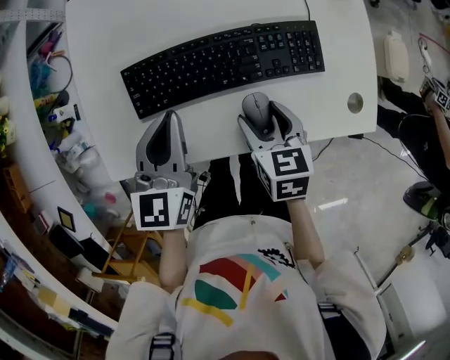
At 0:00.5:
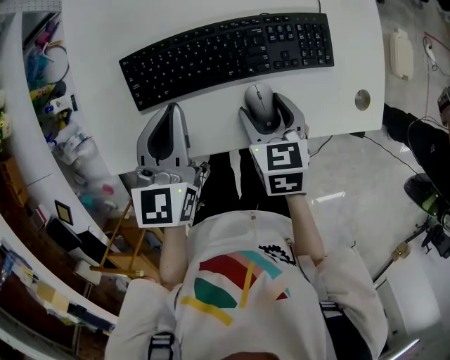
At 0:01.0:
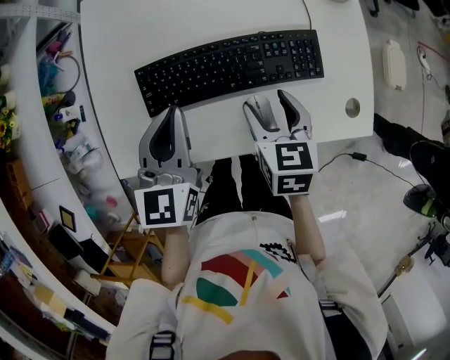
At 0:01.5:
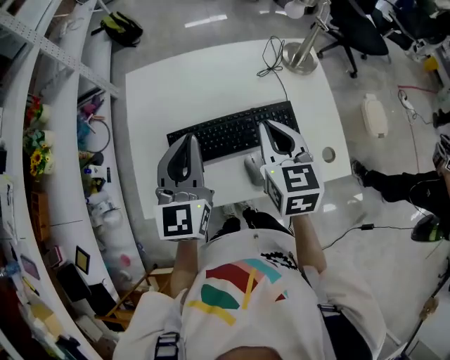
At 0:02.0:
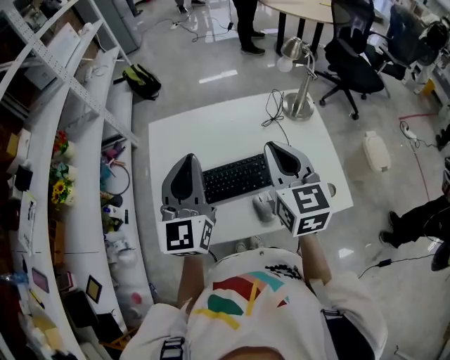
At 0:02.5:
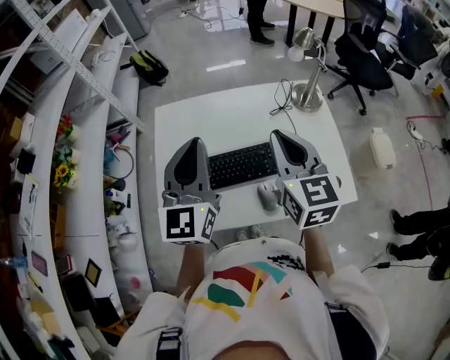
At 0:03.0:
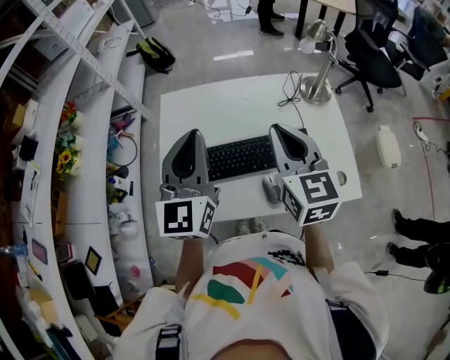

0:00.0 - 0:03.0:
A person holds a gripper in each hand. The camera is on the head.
0:00.0 - 0:01.5: The grippers both shift upward by some 20 cm. The left gripper changes its angle by some 20 degrees. Meanwhile the right gripper turns by some 30 degrees, and closes its fingers.
0:01.5 - 0:03.0: The two grippers go some 10 cm upward.

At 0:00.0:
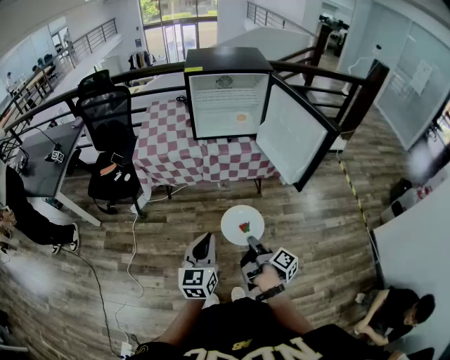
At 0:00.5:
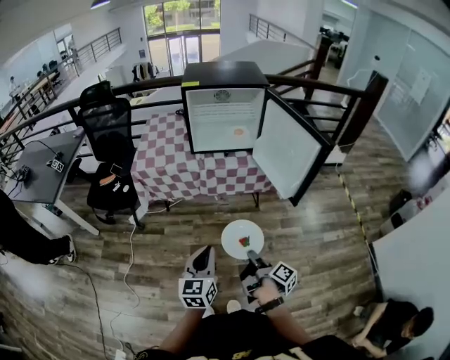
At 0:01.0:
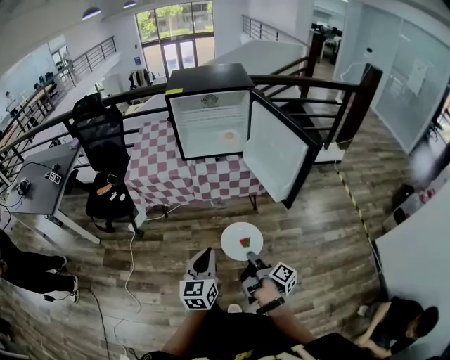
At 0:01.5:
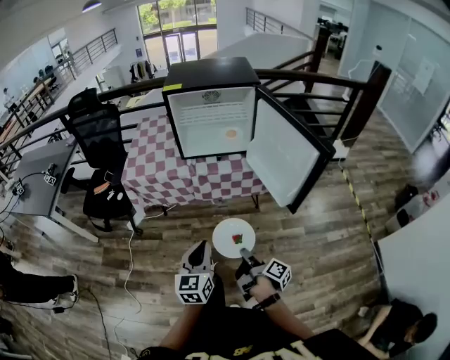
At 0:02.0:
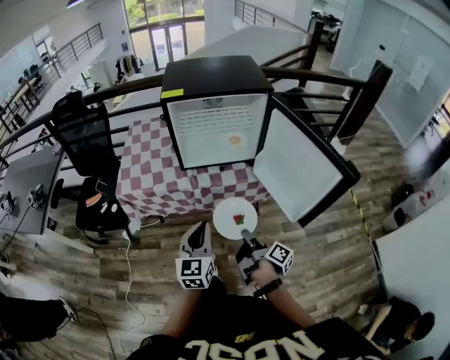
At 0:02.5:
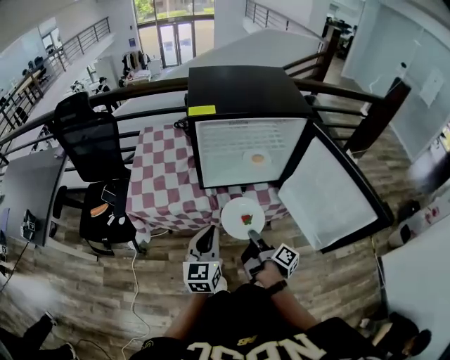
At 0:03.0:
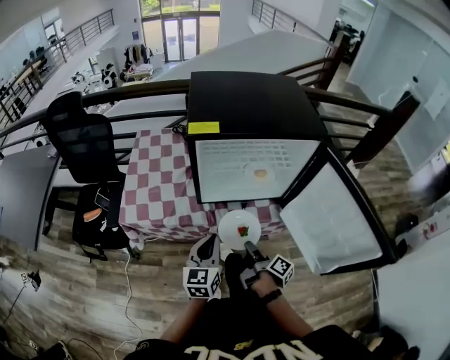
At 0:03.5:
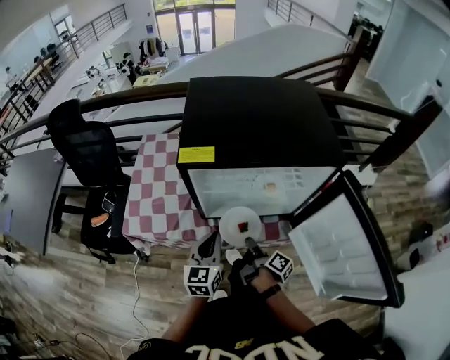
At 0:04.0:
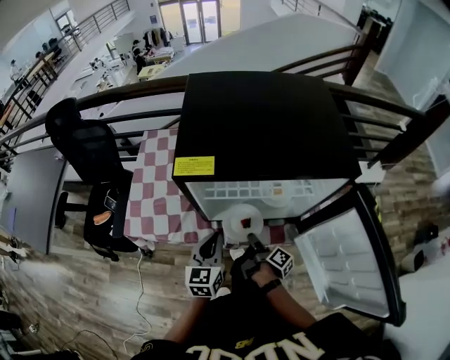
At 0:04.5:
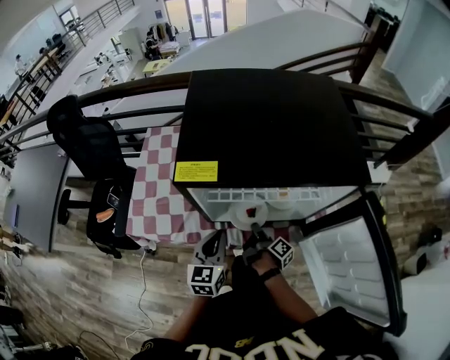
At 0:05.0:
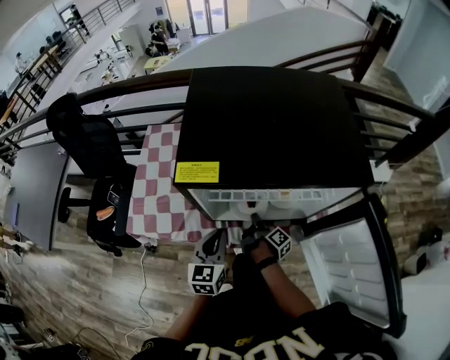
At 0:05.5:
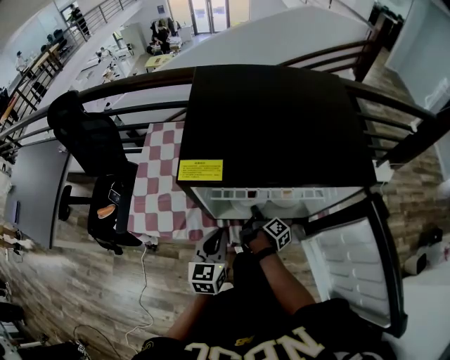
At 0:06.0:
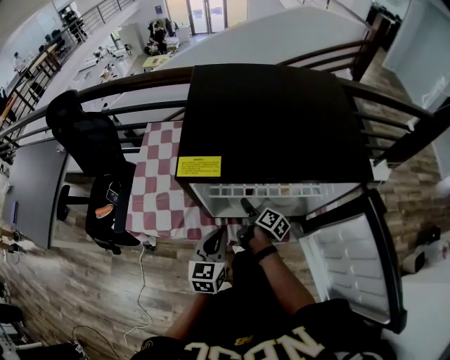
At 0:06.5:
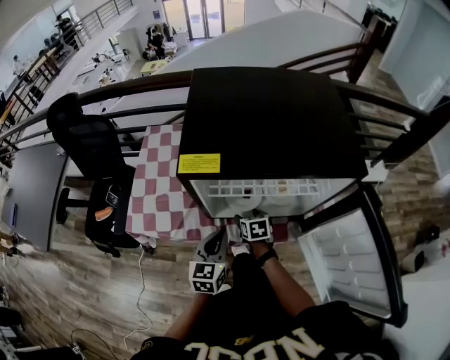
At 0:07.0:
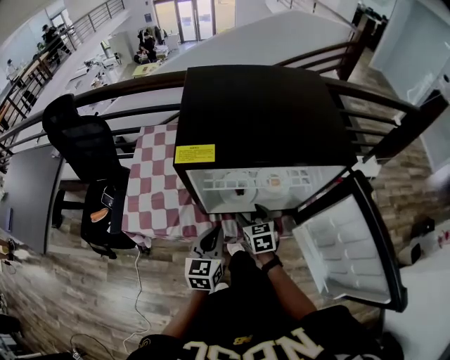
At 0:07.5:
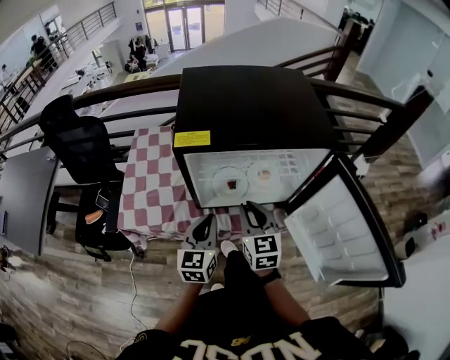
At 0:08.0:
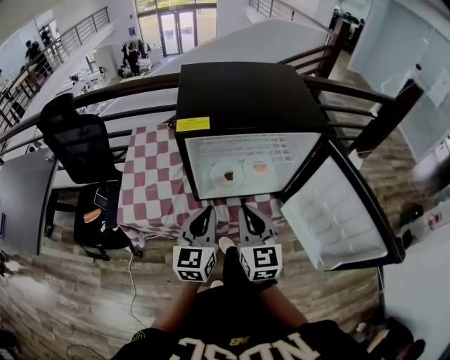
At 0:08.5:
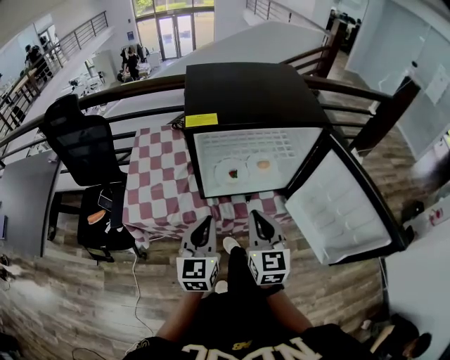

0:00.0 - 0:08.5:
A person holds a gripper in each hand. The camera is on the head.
0:00.0 - 0:02.0: The left gripper changes place by some 25 cm.
0:02.0 - 0:04.0: The left gripper shifts by about 30 cm.
0:06.5 - 0:08.5: The left gripper heads upward, covering roughly 10 cm.

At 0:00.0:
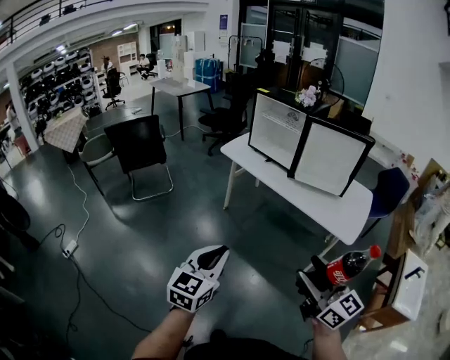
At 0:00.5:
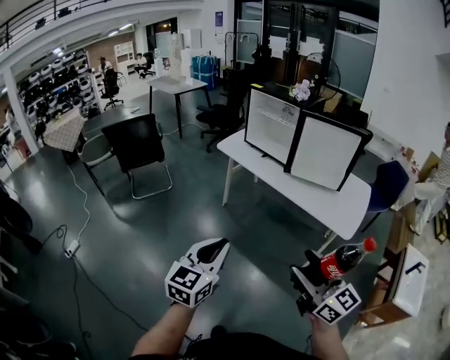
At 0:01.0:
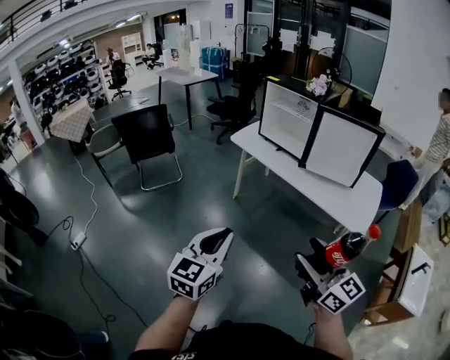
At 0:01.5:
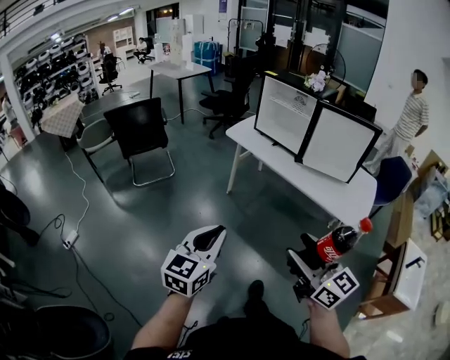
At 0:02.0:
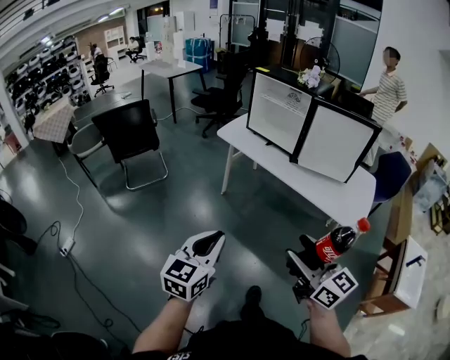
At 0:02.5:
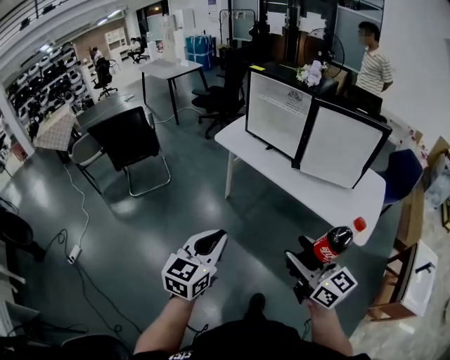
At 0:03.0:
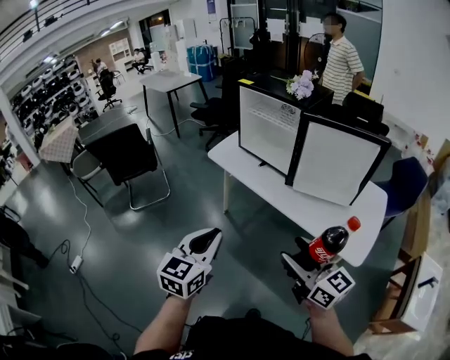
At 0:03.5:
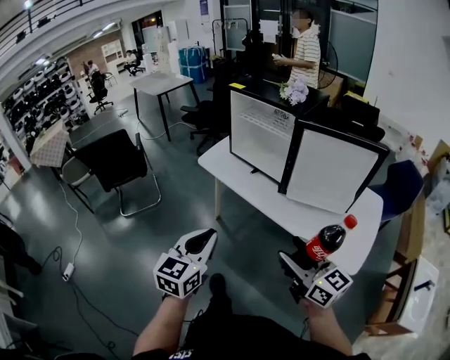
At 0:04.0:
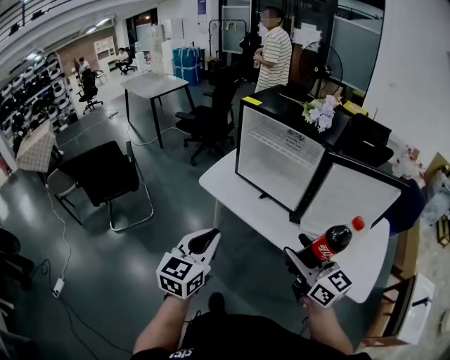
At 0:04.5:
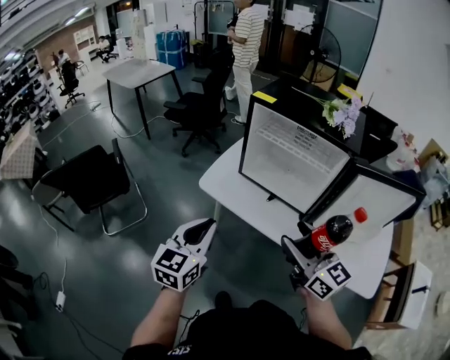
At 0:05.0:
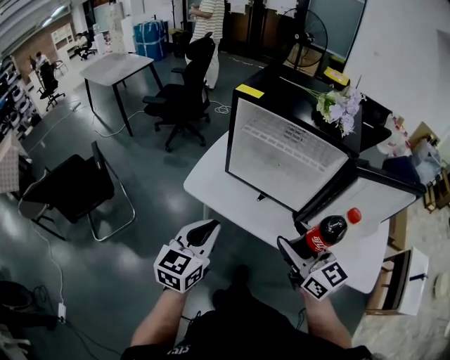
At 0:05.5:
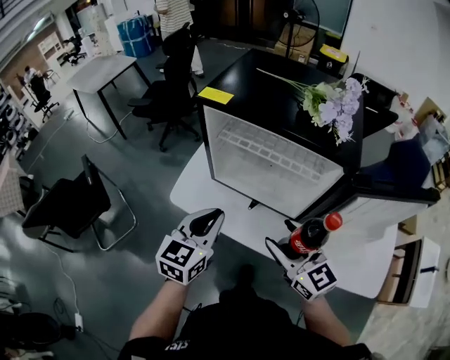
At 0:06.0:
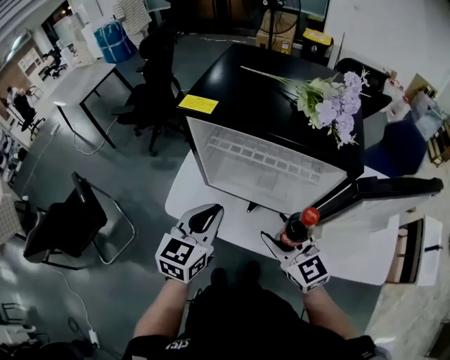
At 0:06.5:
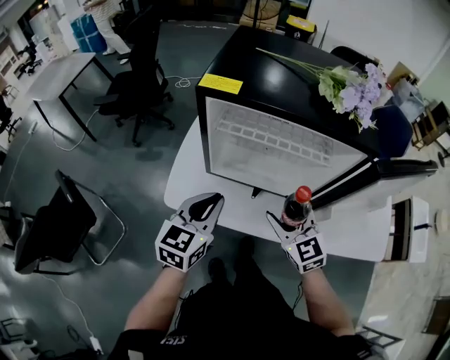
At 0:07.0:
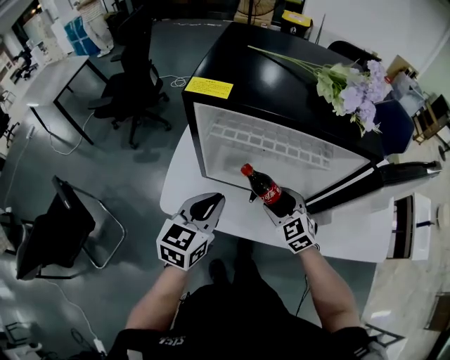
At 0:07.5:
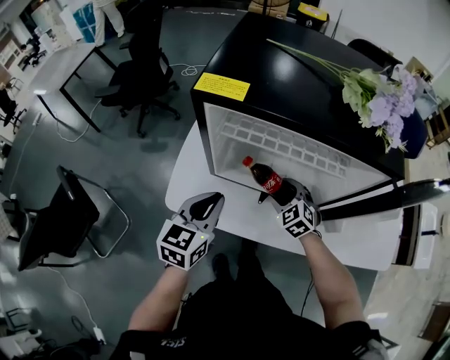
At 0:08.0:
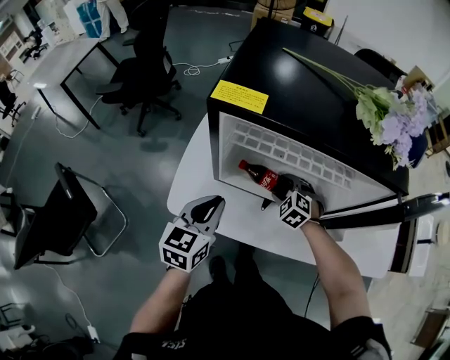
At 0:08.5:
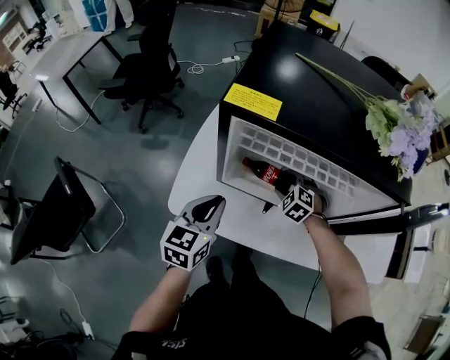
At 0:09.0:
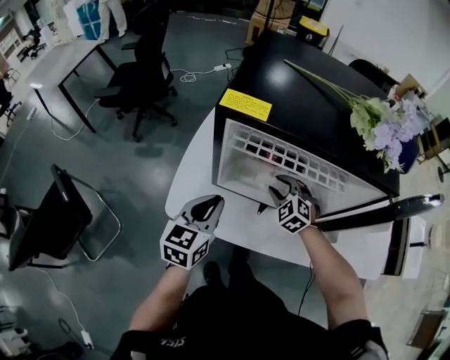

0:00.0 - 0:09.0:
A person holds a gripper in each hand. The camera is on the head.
0:00.0 - 0:02.0: The right gripper is displaced forward and to the left by approximately 10 cm; the left gripper travels forward by approximately 10 cm.
0:02.0 - 0:04.5: Both grippers are carried forward, some 60 cm.
0:04.5 - 0:07.0: The right gripper changes place by some 40 cm, and angles its fingers downward, by approximately 40 degrees. The left gripper moves roughly 30 cm, and turns by some 30 degrees.
0:07.0 - 0:09.0: The right gripper moves forward, some 10 cm, swivels some 20 degrees, and closes, while the left gripper goes approximately 5 cm to the left.

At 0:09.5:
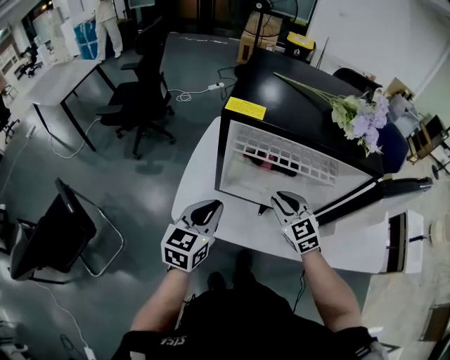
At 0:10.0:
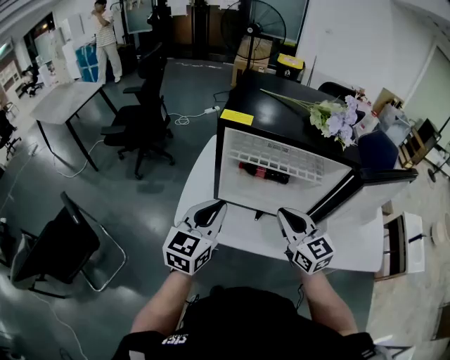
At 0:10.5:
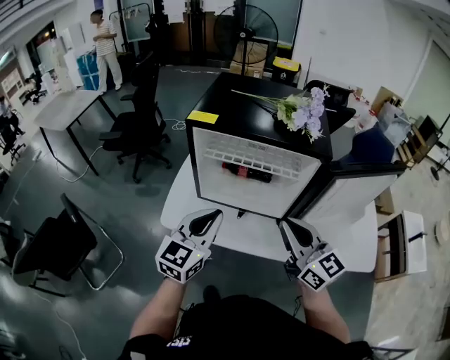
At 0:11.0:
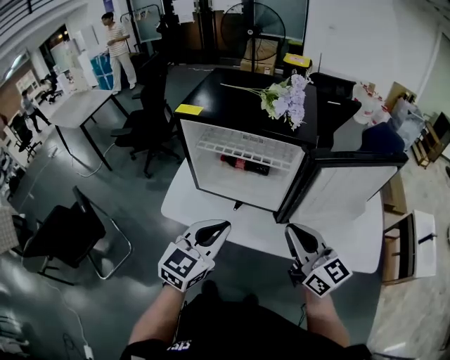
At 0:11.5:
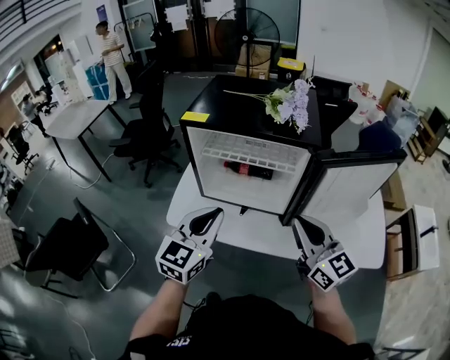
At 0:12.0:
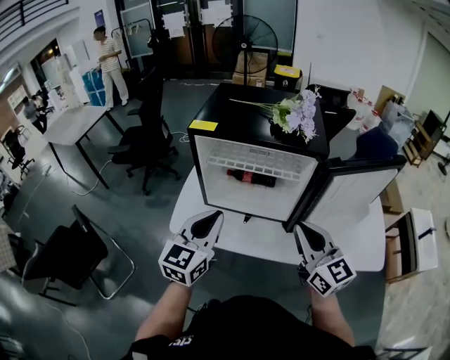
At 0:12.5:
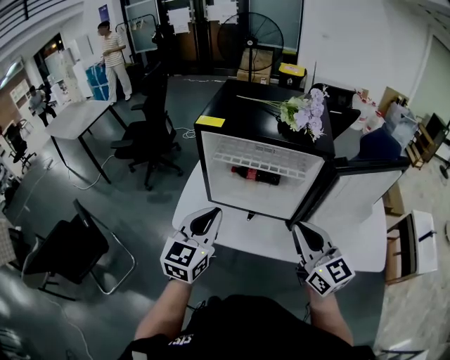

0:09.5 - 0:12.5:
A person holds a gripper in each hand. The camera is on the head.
0:09.5 - 0:11.0: The left gripper goes about 25 cm to the right, backward and upward. Meanwhile the right gripper is displaced backward, to the right and upward by about 30 cm, and angles its fingers upward, by approximately 30 degrees.
0:11.0 - 0:12.5: The right gripper travels to the left by roughly 5 cm. Meanwhile the left gripper moves to the left and forward, about 10 cm.

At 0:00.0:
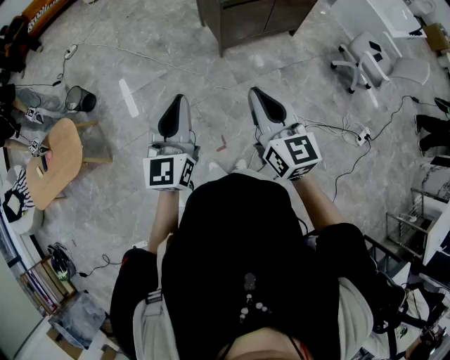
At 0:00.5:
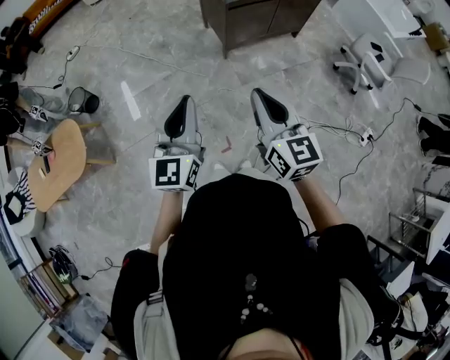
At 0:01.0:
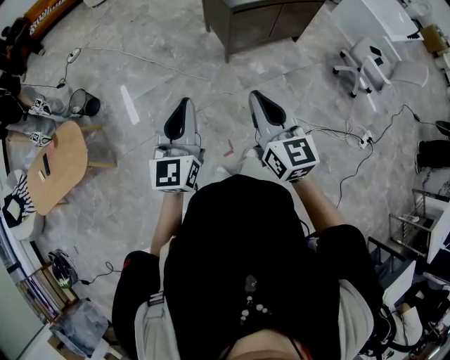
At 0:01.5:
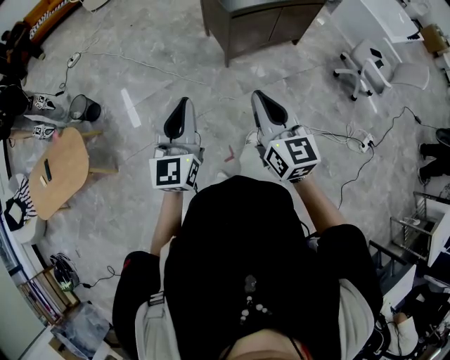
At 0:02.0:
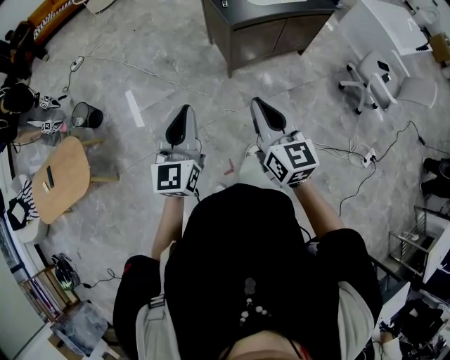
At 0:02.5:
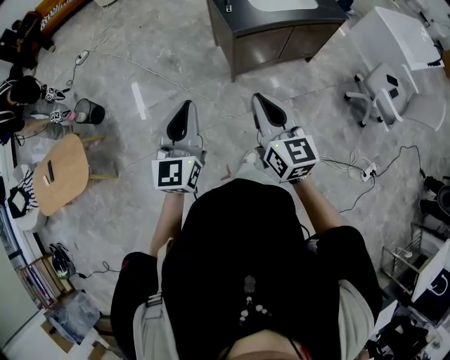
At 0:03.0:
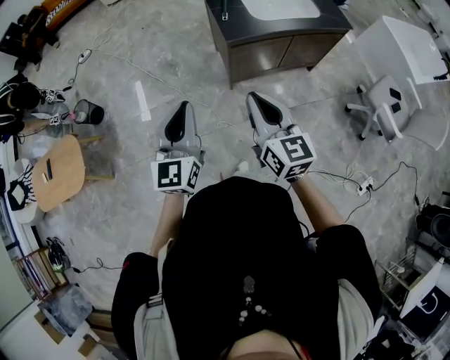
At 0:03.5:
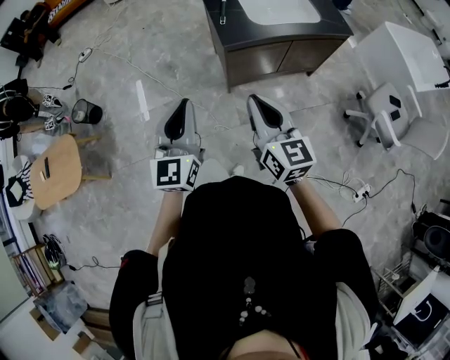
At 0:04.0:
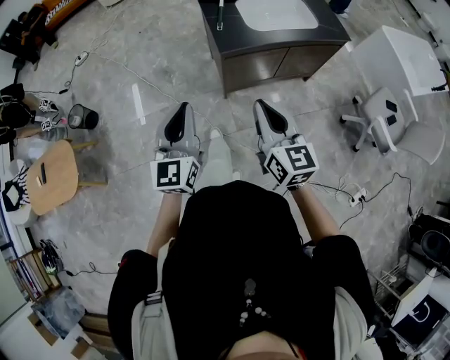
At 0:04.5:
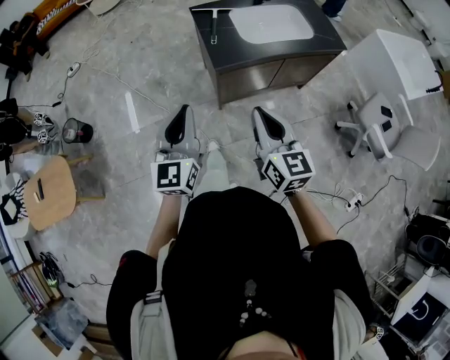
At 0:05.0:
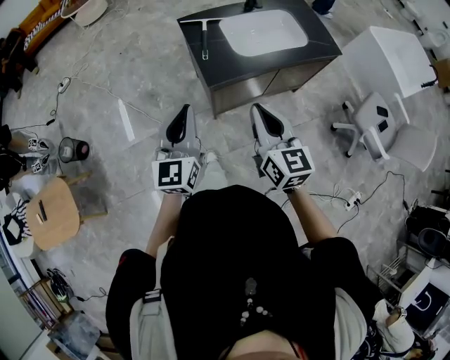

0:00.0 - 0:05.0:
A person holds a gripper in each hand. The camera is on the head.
0:00.0 - 0:02.5: Both grippers move forward, approximately 20 cm.
0:02.5 - 0:05.0: The two grippers go some 30 cm forward and to the right.
